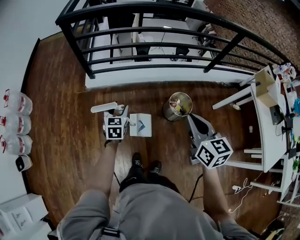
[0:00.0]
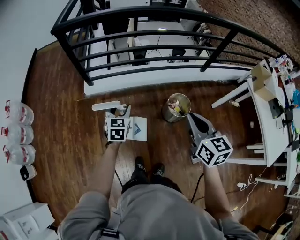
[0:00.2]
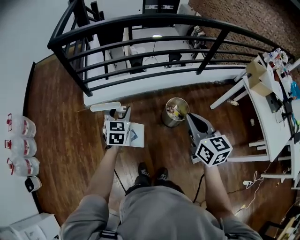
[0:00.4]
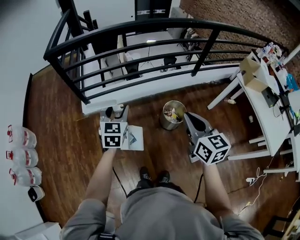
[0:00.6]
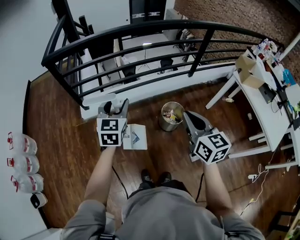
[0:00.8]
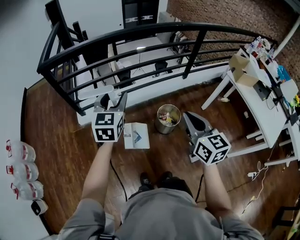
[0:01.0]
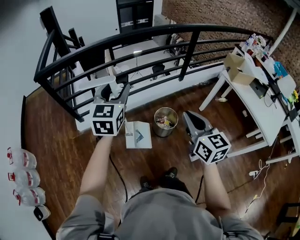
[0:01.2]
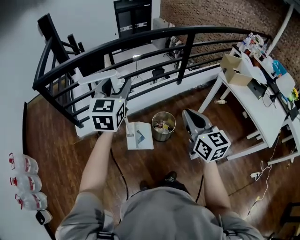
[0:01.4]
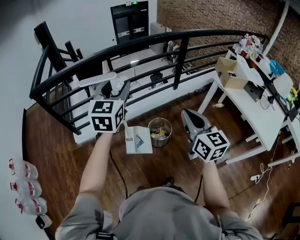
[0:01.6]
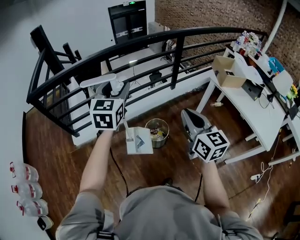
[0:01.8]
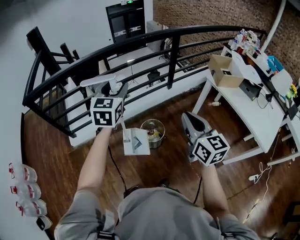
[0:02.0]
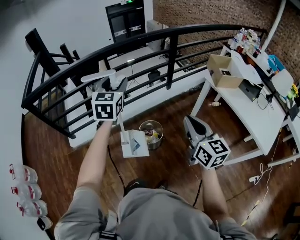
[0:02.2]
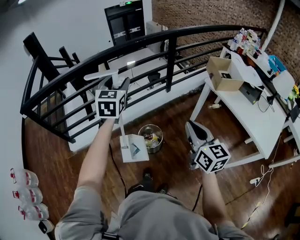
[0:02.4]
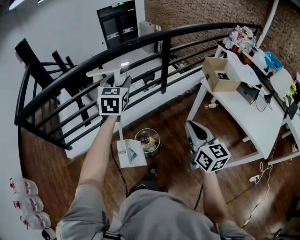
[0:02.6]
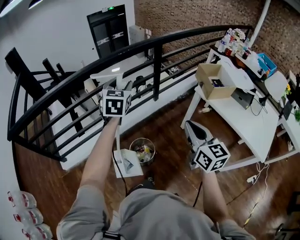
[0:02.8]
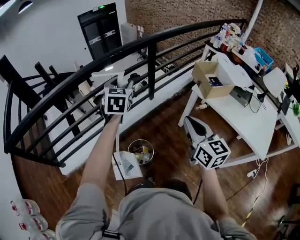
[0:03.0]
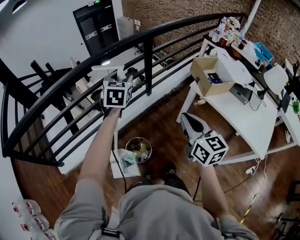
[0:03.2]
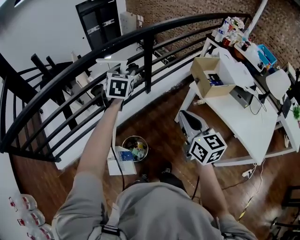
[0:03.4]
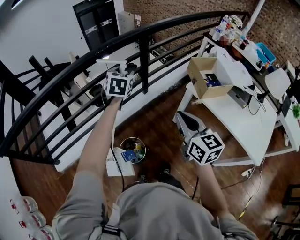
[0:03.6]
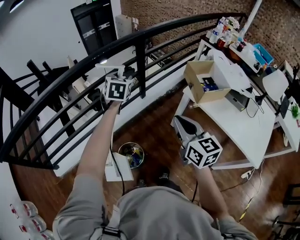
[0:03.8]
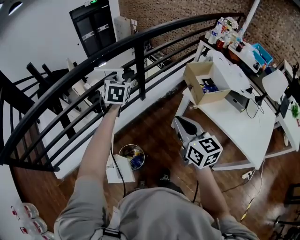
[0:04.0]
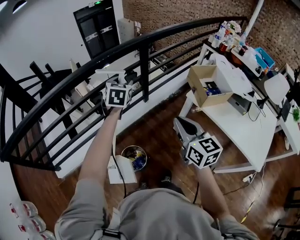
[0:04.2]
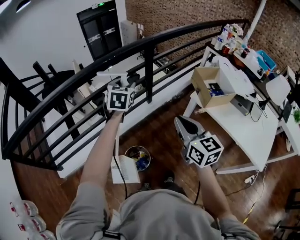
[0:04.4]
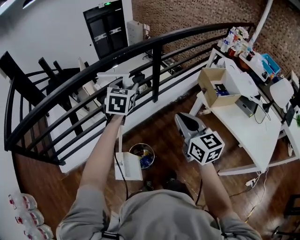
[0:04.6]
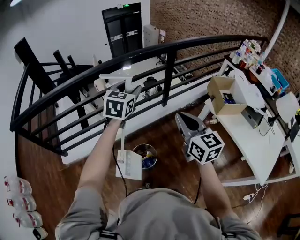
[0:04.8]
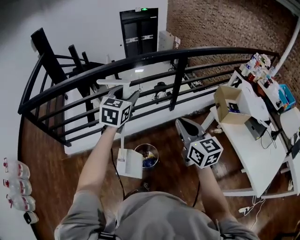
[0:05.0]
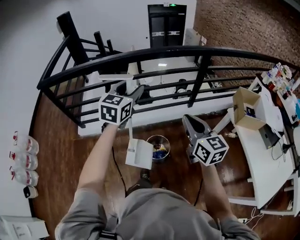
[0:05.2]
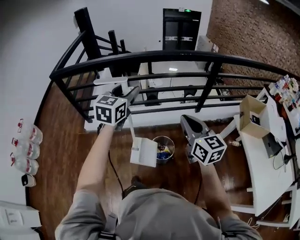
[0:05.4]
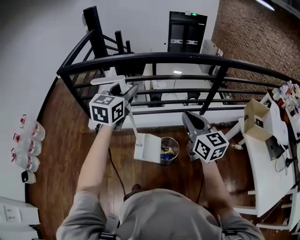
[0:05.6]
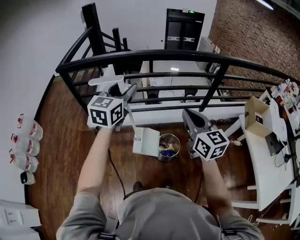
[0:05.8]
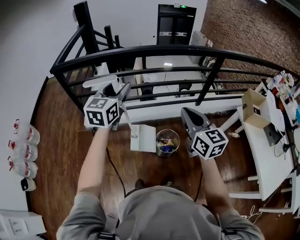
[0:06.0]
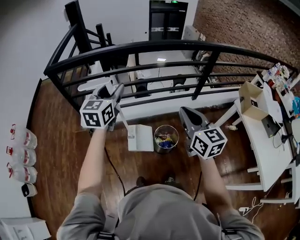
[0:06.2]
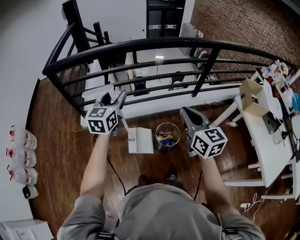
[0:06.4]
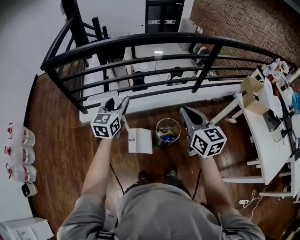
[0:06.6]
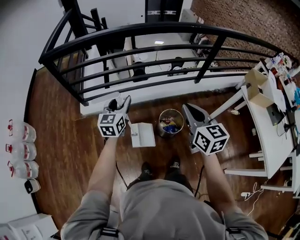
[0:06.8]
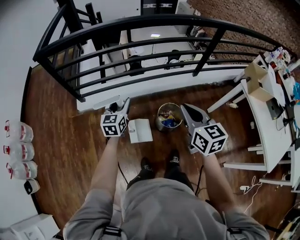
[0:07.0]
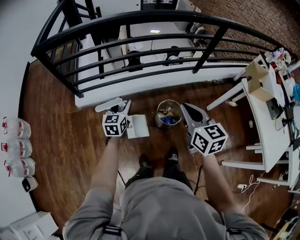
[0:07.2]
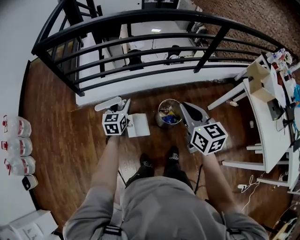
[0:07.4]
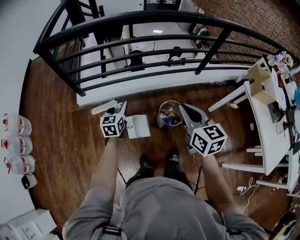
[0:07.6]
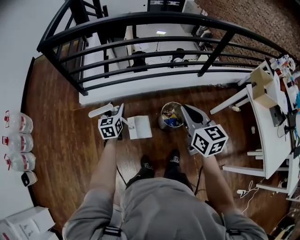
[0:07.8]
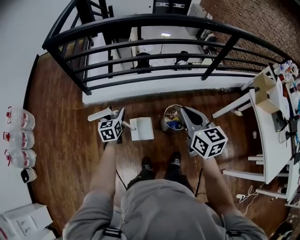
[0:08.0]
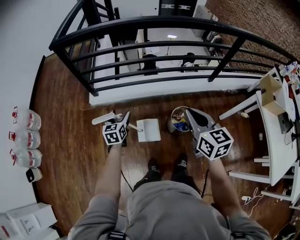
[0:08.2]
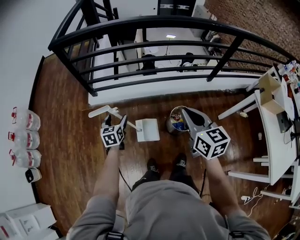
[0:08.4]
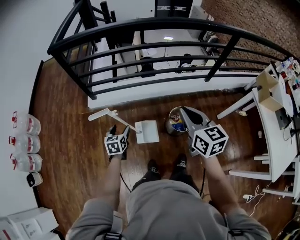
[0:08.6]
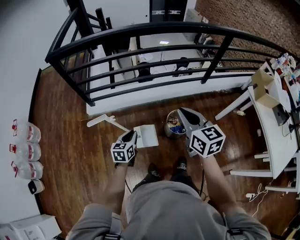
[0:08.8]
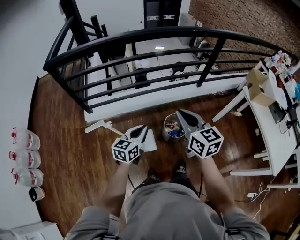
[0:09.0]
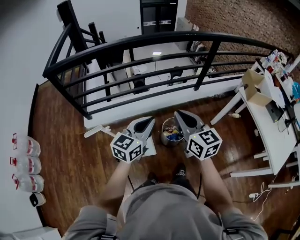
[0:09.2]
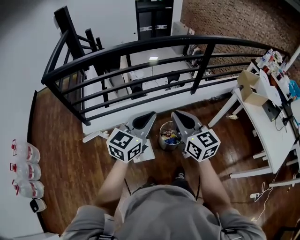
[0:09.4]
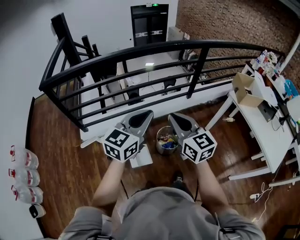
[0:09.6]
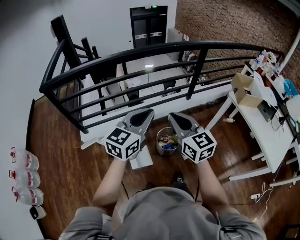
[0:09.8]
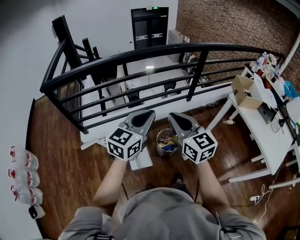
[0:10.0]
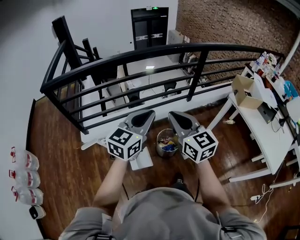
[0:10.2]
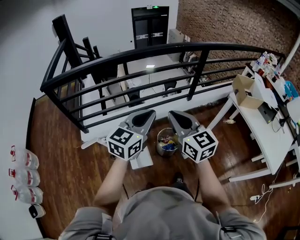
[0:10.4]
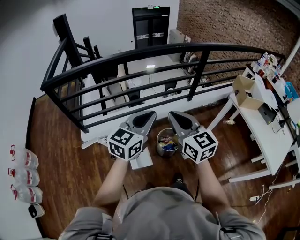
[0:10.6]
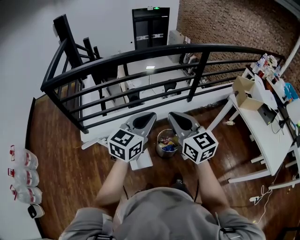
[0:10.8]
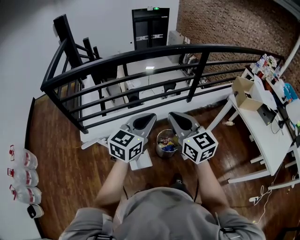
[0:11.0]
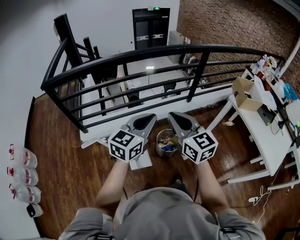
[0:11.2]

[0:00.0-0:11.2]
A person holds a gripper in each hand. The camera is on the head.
0:00.0 to 0:01.6: The left gripper moves upward and to the right, roughly 50 cm, and changes its angle by some 40 degrees. The right gripper goes some 25 cm to the right and upward, and swivels some 20 degrees.
0:01.6 to 0:03.2: Both grippers move forward and to the right, about 40 cm.
0:03.2 to 0:04.8: The left gripper heads backward, covering approximately 5 cm, while the right gripper moves to the left, some 5 cm.
0:04.8 to 0:06.4: The left gripper travels to the left and backward by some 40 cm, and turns by roughly 30 degrees, while the right gripper shifts some 25 cm to the left.
0:06.4 to 0:08.0: The left gripper is displaced downward and to the left by about 30 cm, and turns by approximately 30 degrees. The right gripper moves to the left and downward, some 15 cm.
0:08.0 to 0:09.6: The left gripper goes approximately 30 cm upward, swivels some 50 degrees, and closes up. Meanwhile the right gripper is displaced upward by about 10 cm.
0:09.6 to 0:11.2: The grippers make only small movements.

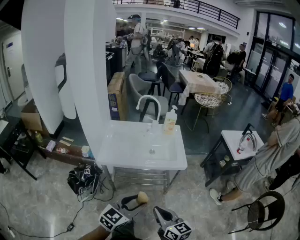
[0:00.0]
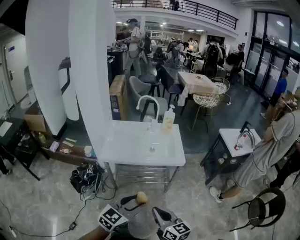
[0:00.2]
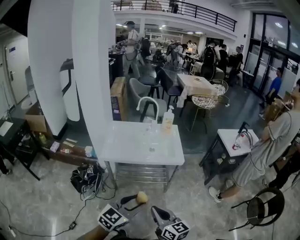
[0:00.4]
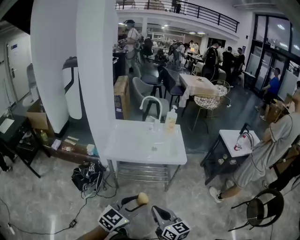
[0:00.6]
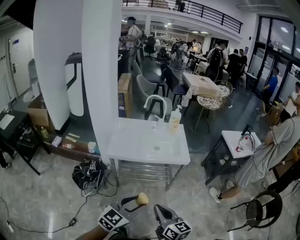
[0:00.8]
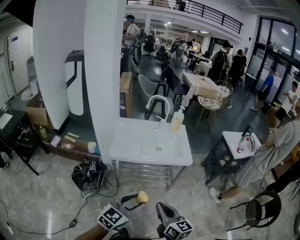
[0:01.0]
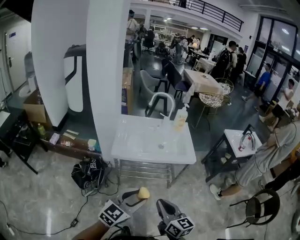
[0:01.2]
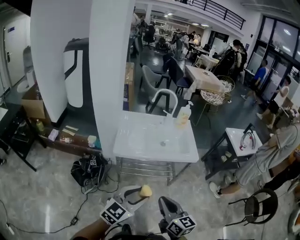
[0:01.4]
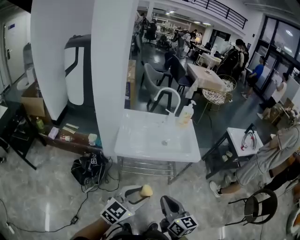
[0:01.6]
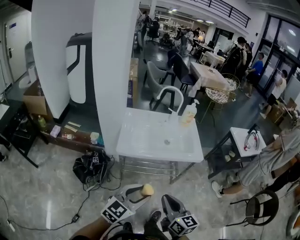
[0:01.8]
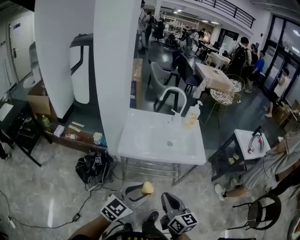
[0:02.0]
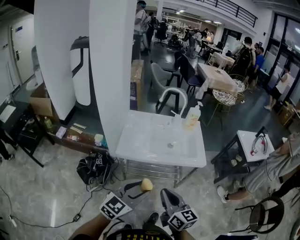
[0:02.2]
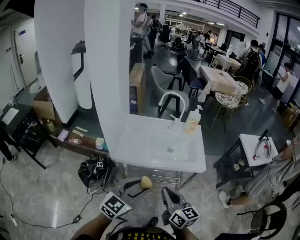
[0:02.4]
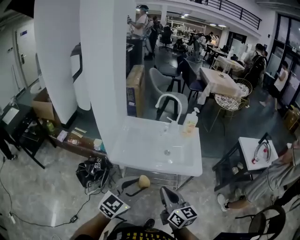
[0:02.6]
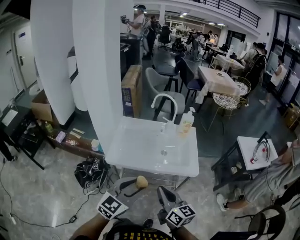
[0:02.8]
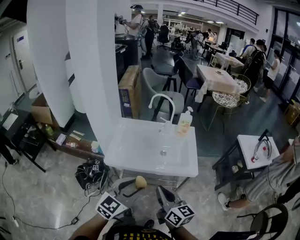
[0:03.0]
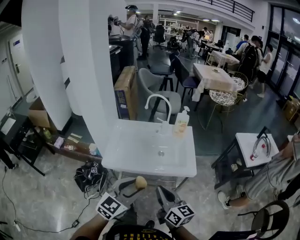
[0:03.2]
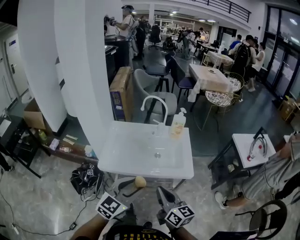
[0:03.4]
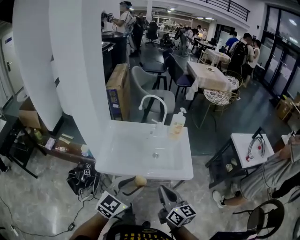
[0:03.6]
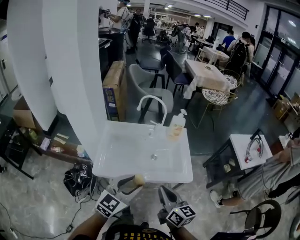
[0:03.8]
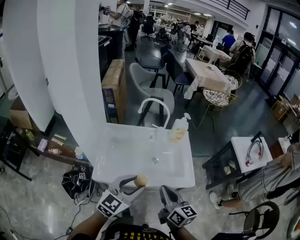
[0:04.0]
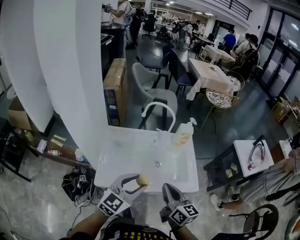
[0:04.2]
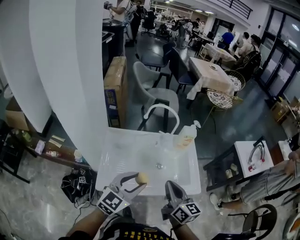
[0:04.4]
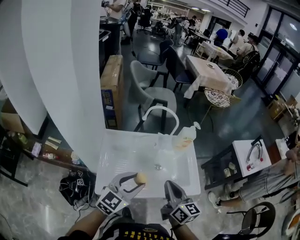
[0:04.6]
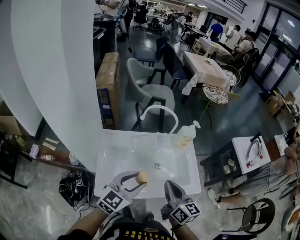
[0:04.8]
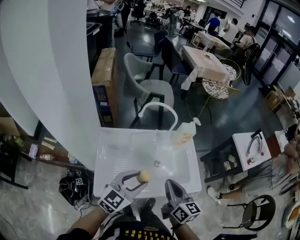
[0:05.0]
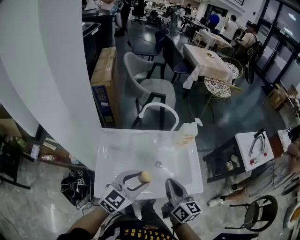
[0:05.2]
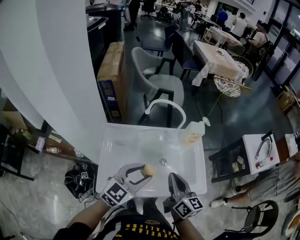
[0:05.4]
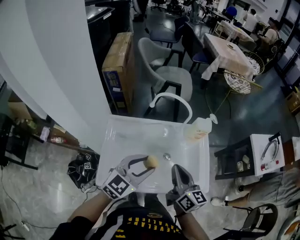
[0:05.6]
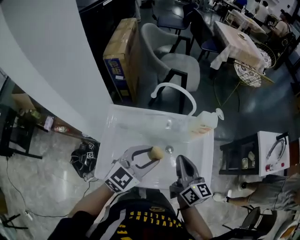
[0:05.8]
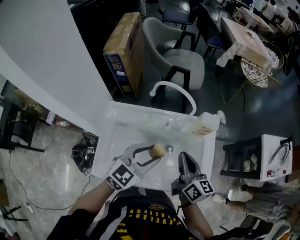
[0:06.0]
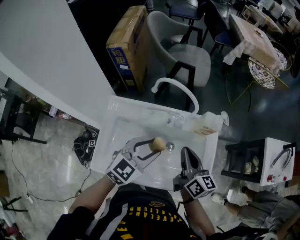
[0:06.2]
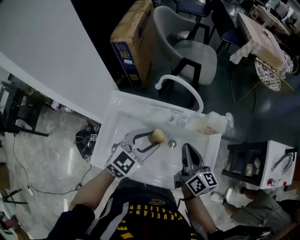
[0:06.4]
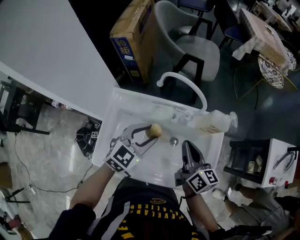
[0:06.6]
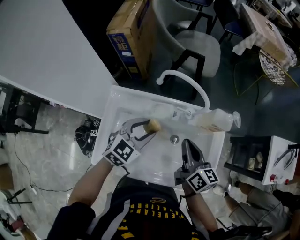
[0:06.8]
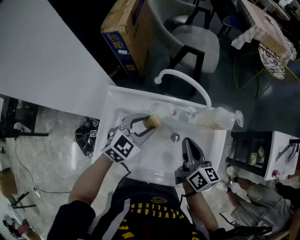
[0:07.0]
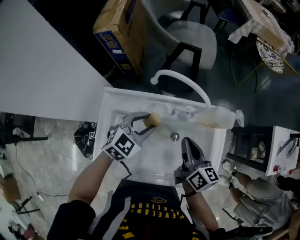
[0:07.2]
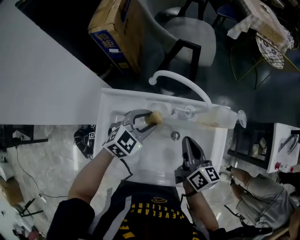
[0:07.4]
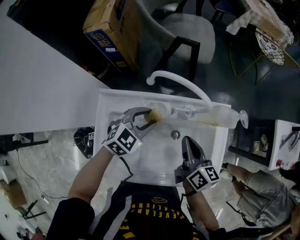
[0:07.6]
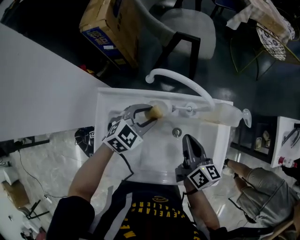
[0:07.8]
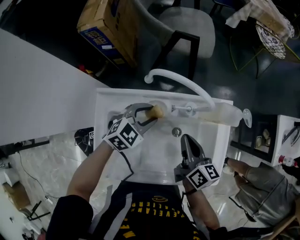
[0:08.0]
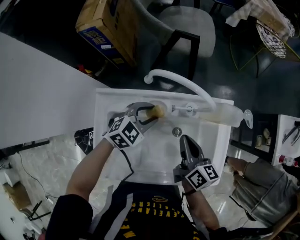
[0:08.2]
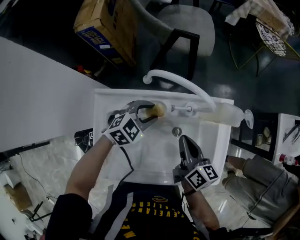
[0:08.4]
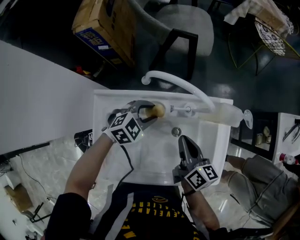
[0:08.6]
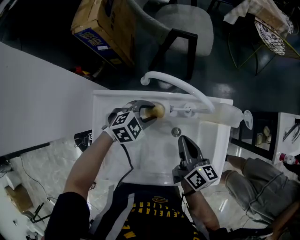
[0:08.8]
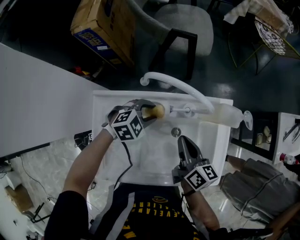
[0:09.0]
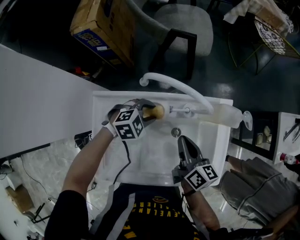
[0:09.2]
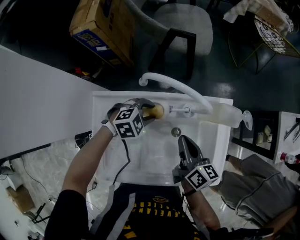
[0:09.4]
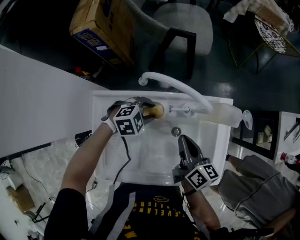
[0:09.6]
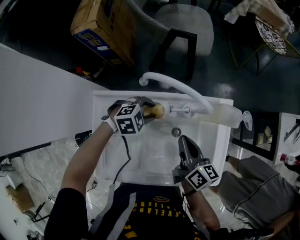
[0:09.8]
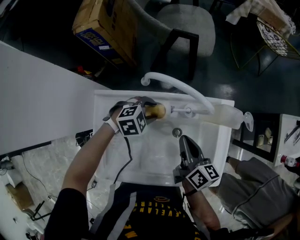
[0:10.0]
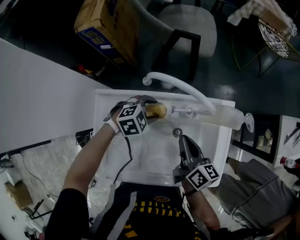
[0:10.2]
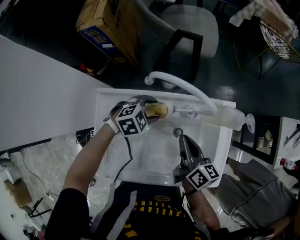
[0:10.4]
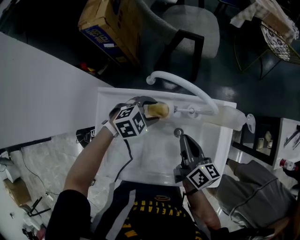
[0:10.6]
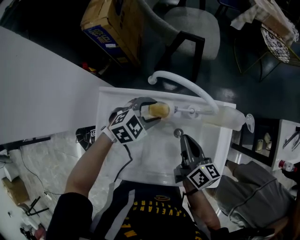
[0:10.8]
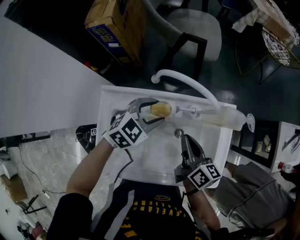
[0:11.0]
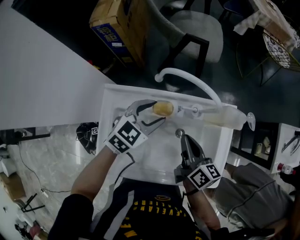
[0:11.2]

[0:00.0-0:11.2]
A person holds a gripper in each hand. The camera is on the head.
0:00.0 to 0:01.6: Both grippers travel together to the left, approximately 15 cm.
0:01.6 to 0:03.2: The grippers both shift forward and to the right by roughly 20 cm.
0:03.2 to 0:04.8: The left gripper goes roughly 25 cm forward and to the left; the right gripper moves forward, approximately 25 cm.
0:04.8 to 0:06.4: The left gripper goes about 20 cm forward and downward, while the right gripper is displaced forward by roughly 20 cm.
0:06.4 to 0:08.0: The left gripper moves downward and forward, about 15 cm, and rotates roughly 20 degrees. Meanwhile the right gripper heads downward, covering approximately 10 cm.
0:08.0 to 0:09.6: The left gripper goes some 5 cm downward, and swivels about 30 degrees.
0:09.6 to 0:11.2: The left gripper moves upward, approximately 10 cm, and swivels some 40 degrees.

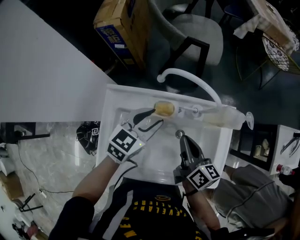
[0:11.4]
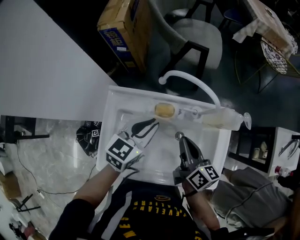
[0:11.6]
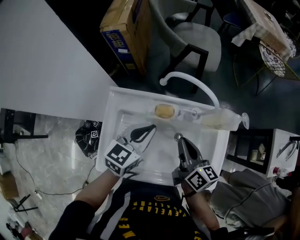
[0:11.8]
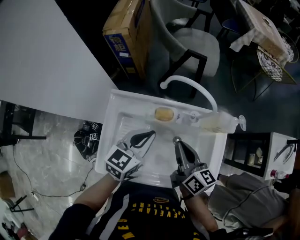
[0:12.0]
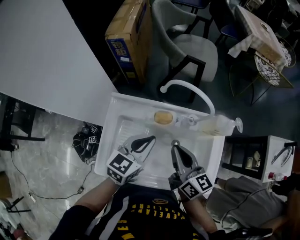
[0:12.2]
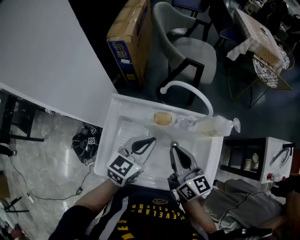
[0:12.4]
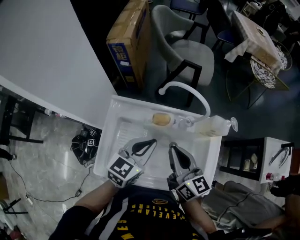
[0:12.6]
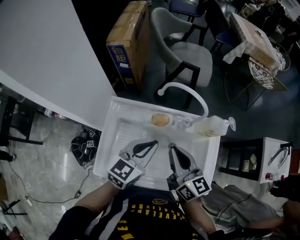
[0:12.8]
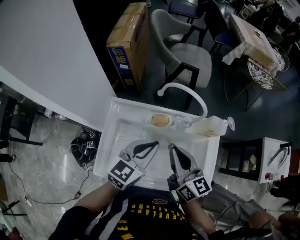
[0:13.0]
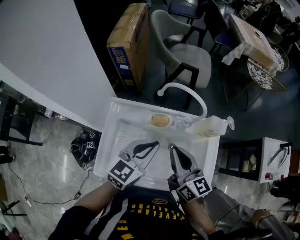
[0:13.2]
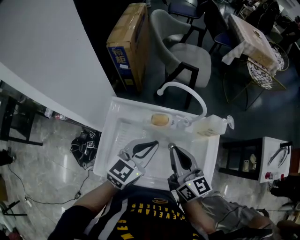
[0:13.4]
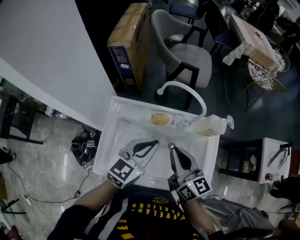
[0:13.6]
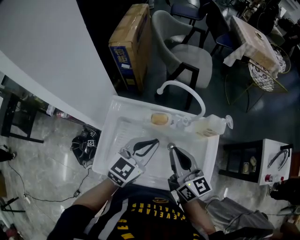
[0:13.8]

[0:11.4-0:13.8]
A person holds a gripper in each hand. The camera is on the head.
0:11.4 to 0:12.6: The left gripper goes some 10 cm backward and upward, and closes its fingers. Meanwhile the right gripper shifts approximately 10 cm upward, and changes its angle by about 20 degrees.
0:12.6 to 0:13.8: There are only small adjustments of the grippers.
